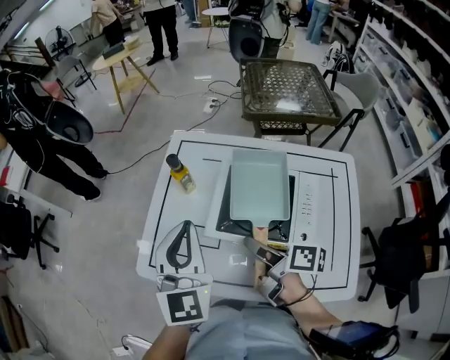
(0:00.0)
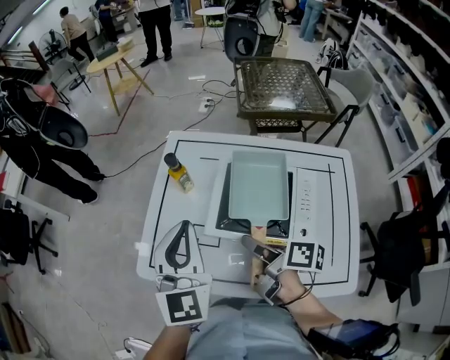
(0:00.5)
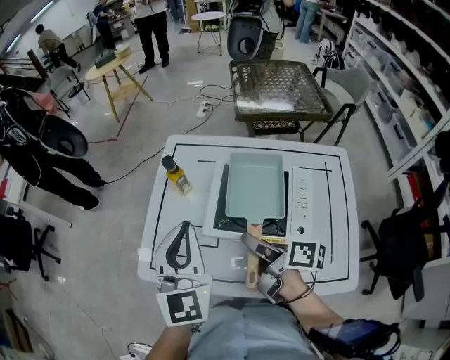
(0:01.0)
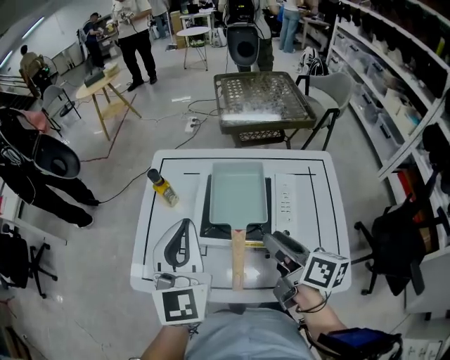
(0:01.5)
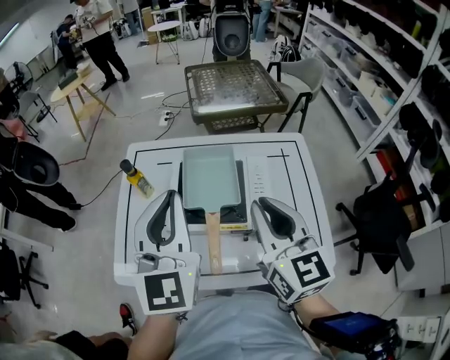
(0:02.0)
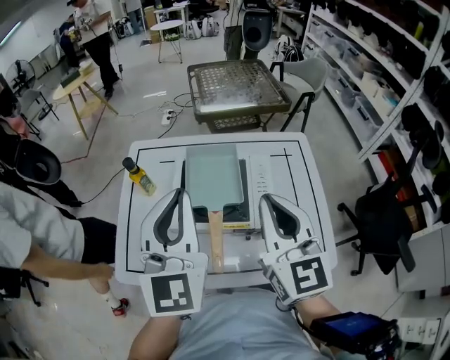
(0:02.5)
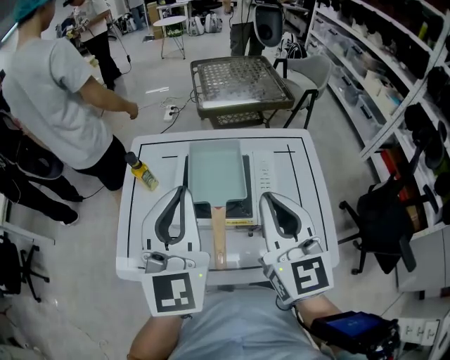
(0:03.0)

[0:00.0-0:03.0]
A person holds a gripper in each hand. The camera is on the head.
0:00.0 to 0:01.5: The right gripper goes some 15 cm to the right, upward and backward, and rotates some 30 degrees. Meanwhile the left gripper moves about 5 cm.
0:01.5 to 0:03.0: The right gripper heads upward, covering some 10 cm, twists some 50 degrees counterclockwise, seen from behind, and closes its fingers, while the left gripper goes approximately 5 cm to the right.

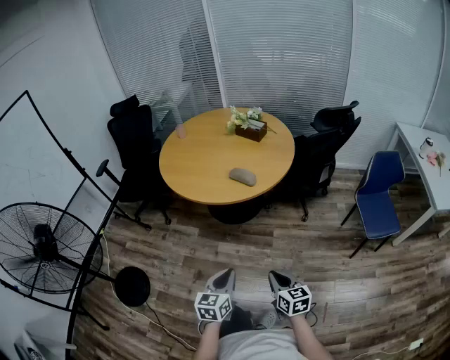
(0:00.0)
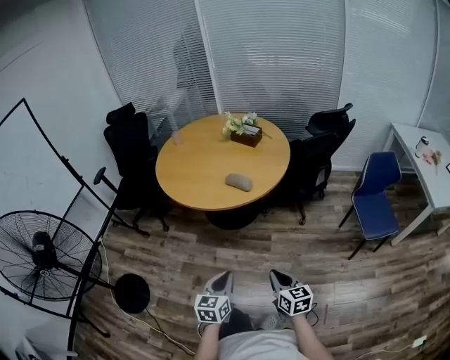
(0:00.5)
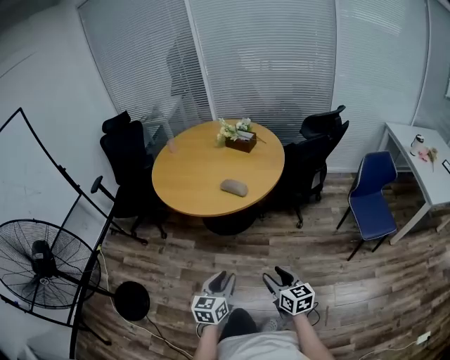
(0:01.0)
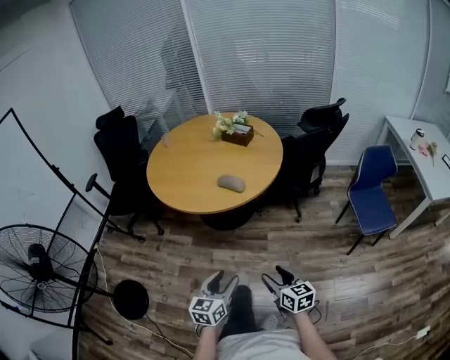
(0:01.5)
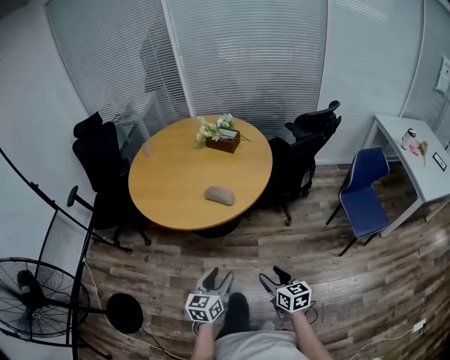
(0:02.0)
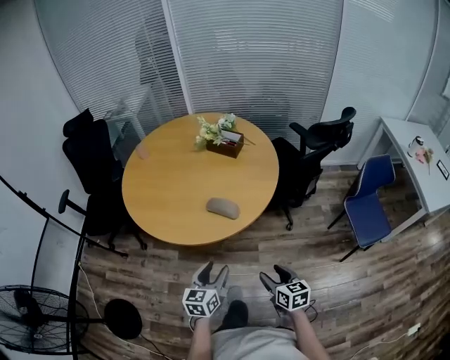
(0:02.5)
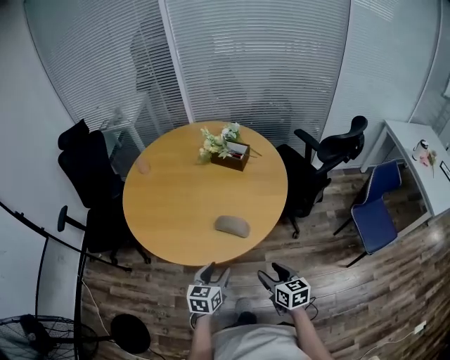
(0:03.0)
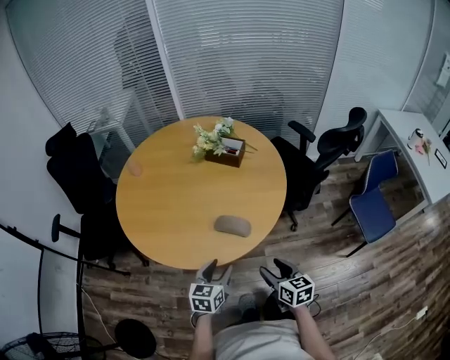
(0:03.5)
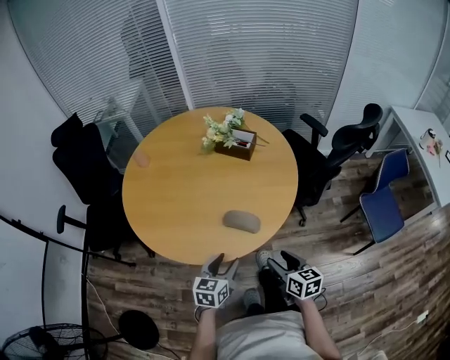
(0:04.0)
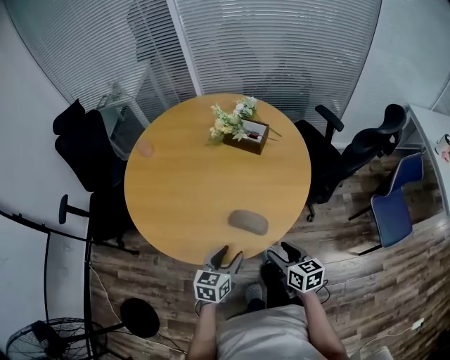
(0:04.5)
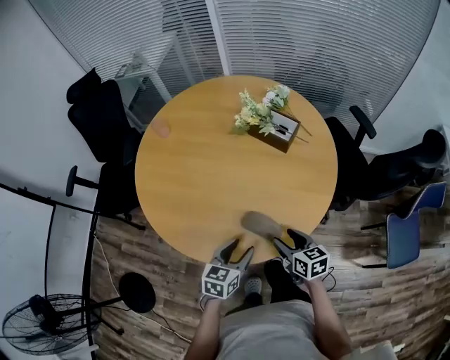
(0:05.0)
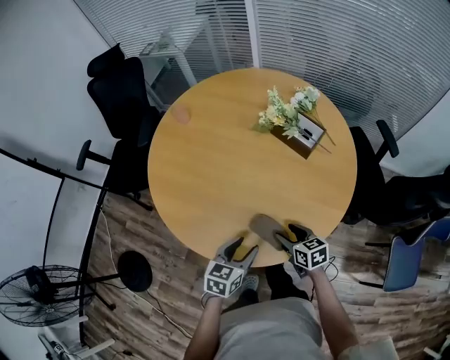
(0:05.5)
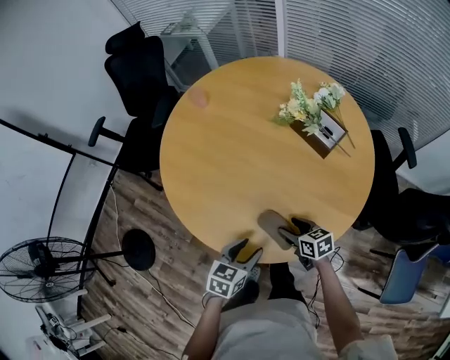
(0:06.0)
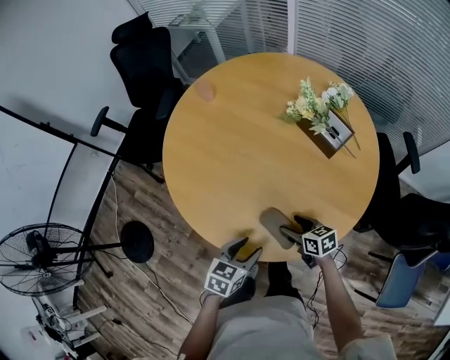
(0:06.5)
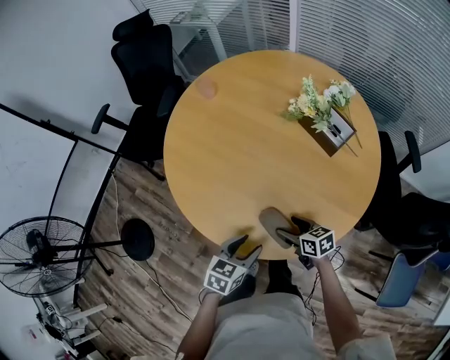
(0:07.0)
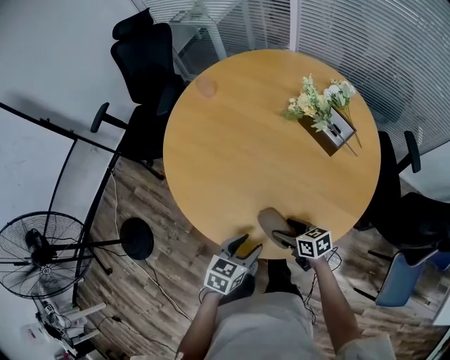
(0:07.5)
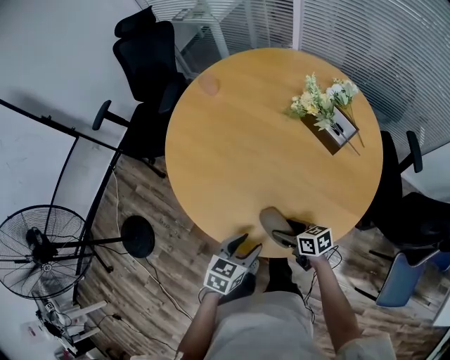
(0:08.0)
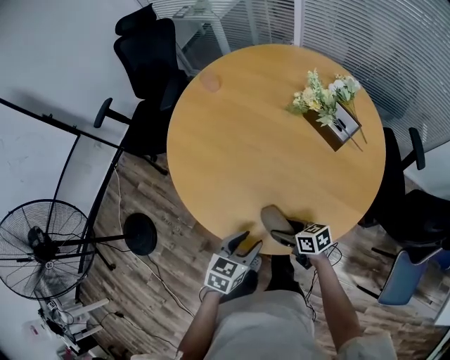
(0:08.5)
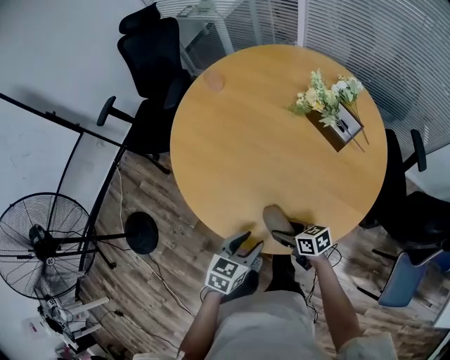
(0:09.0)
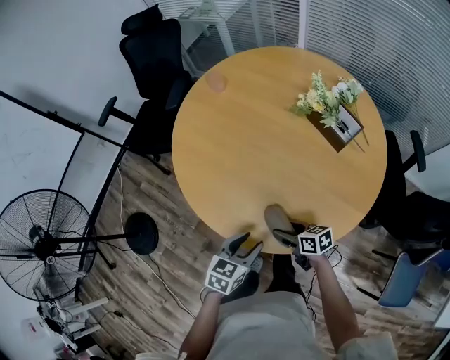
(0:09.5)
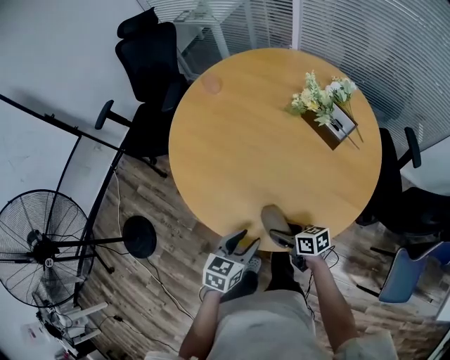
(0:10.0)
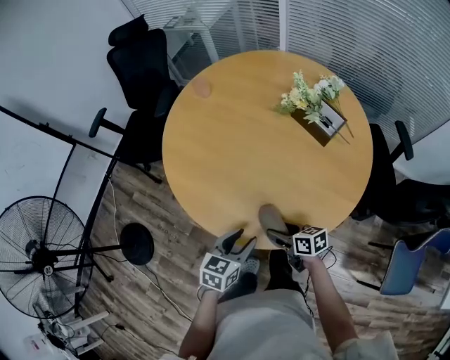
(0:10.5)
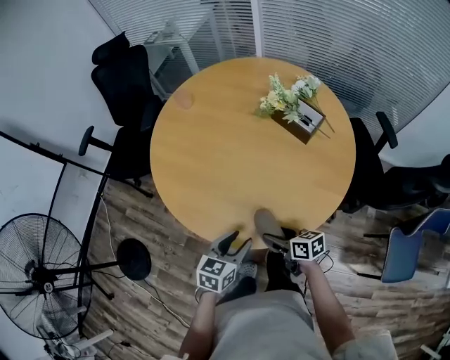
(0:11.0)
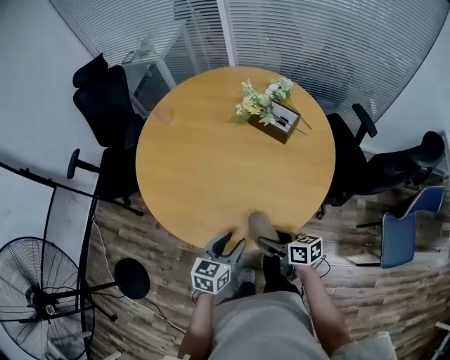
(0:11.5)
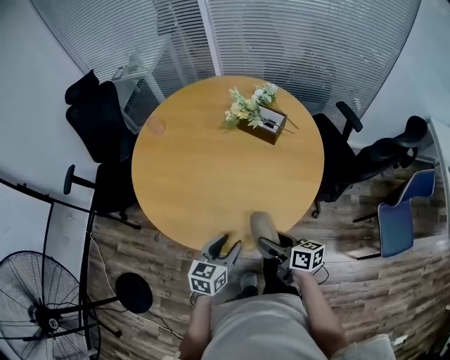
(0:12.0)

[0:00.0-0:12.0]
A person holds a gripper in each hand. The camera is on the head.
0:00.0 to 0:02.0: Both grippers move forward, roughly 15 cm. The left gripper opens up; the right gripper opens its fingers.
0:02.0 to 0:04.0: The grippers both shift forward by some 25 cm.
0:04.0 to 0:06.0: The left gripper changes place by some 10 cm. Meanwhile the right gripper ends up roughly 25 cm from where it was, and turns by about 40 degrees.
0:06.0 to 0:08.0: The right gripper shifts by about 5 cm.
0:08.0 to 0:10.0: There are only small adjustments of the grippers.
0:10.0 to 0:12.0: The right gripper is displaced upward and backward by some 10 cm, and changes its angle by some 30 degrees.

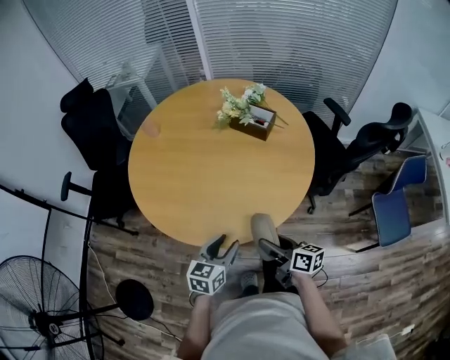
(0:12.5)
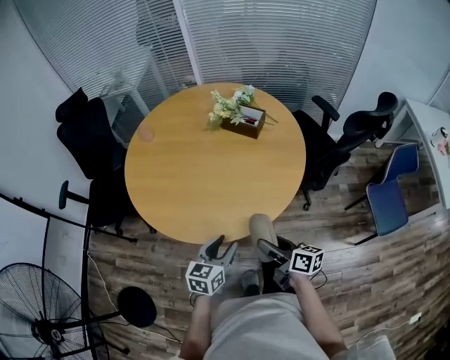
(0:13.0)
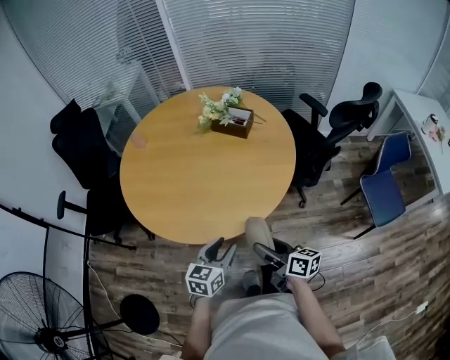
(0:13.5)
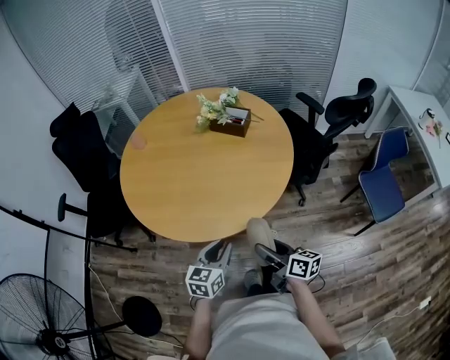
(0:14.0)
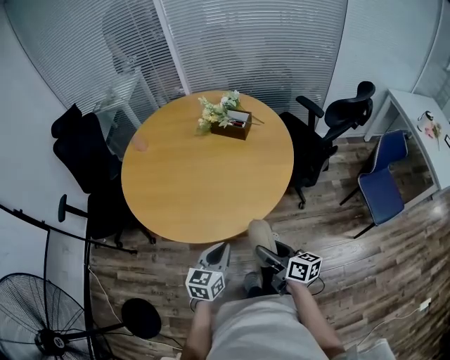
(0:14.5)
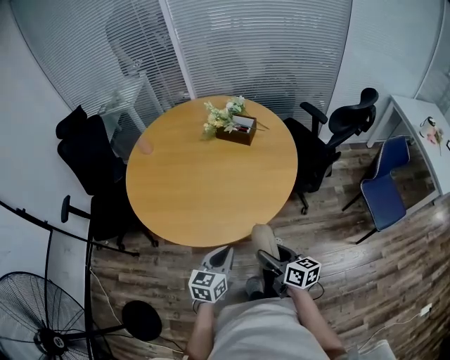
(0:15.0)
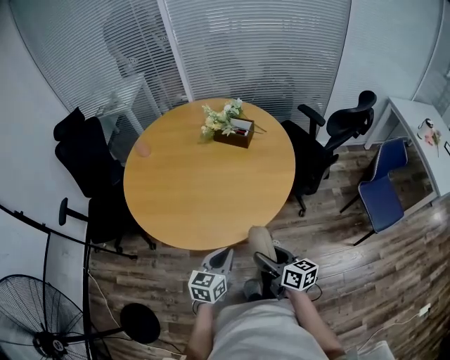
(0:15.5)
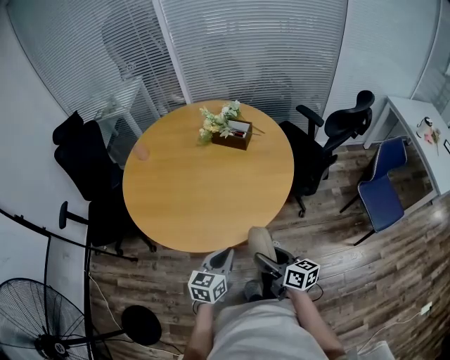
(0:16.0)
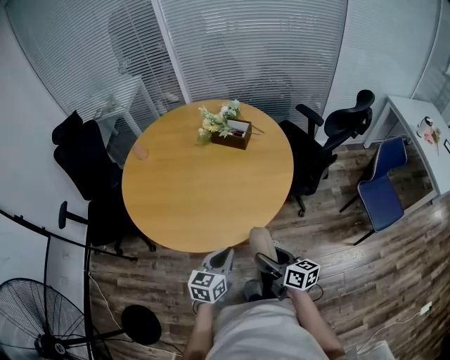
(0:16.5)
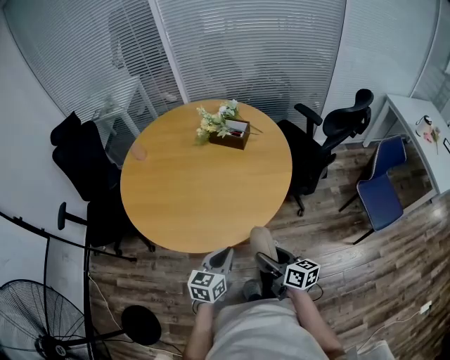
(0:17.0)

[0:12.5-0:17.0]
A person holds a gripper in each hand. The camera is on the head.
0:12.5 to 0:14.5: Both grippers travel together backward, approximately 10 cm. The left gripper closes its fingers.
0:14.5 to 0:17.0: The grippers move only a little.

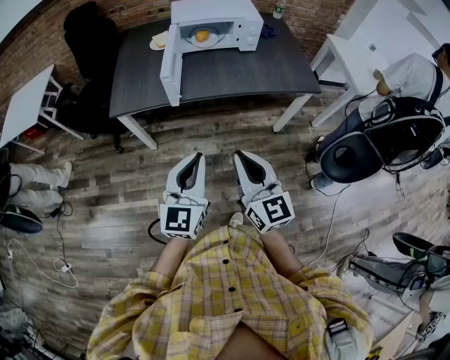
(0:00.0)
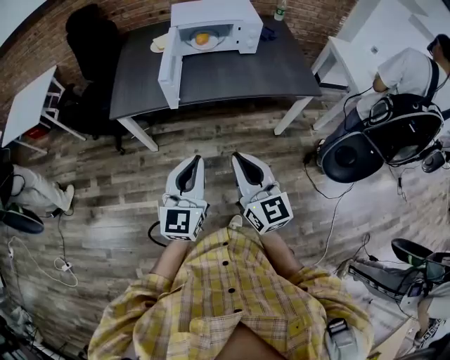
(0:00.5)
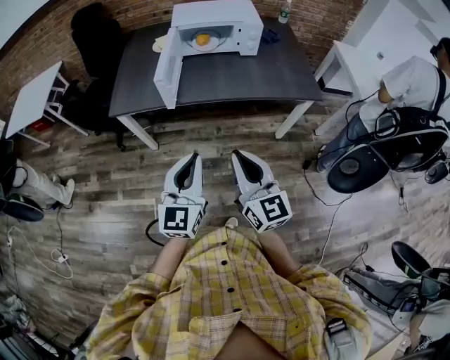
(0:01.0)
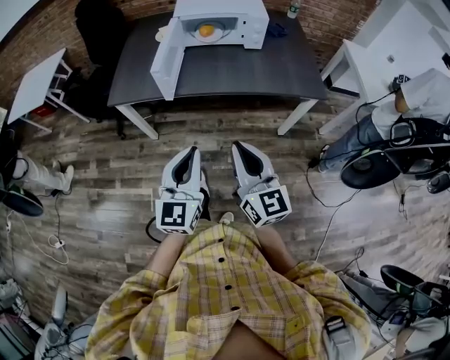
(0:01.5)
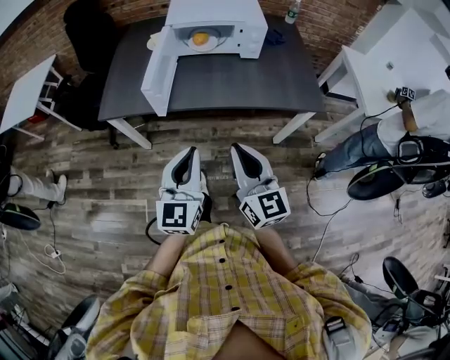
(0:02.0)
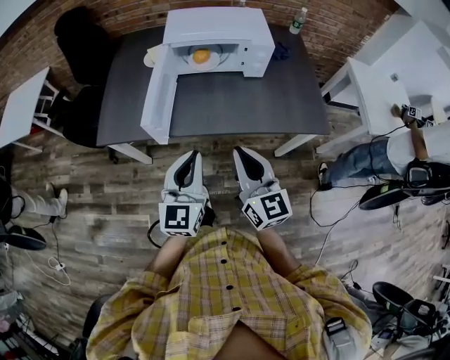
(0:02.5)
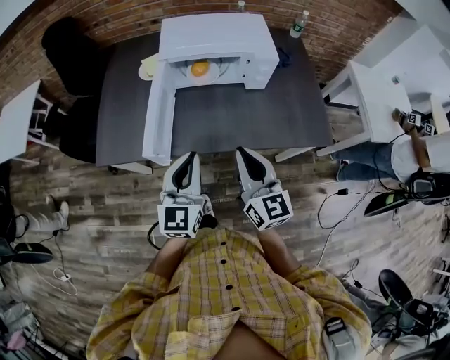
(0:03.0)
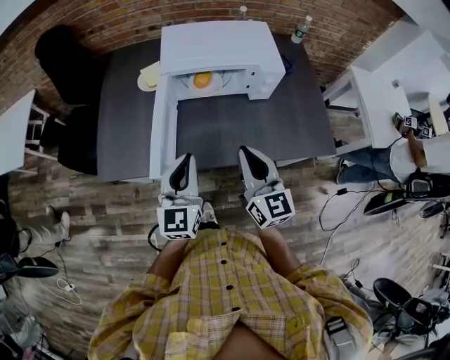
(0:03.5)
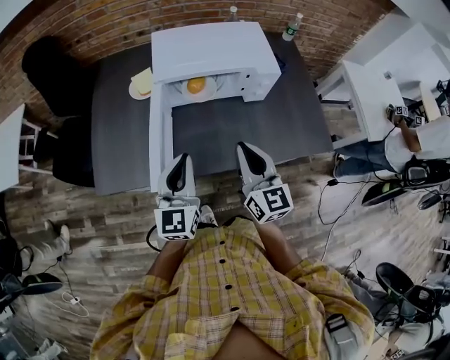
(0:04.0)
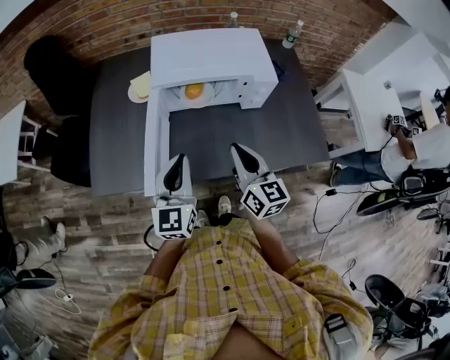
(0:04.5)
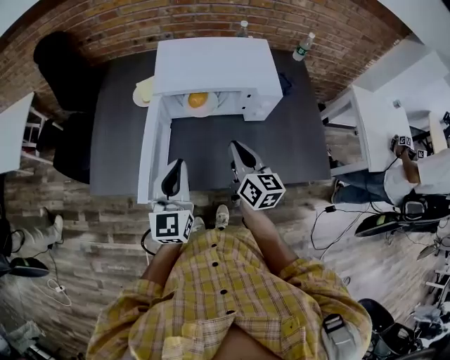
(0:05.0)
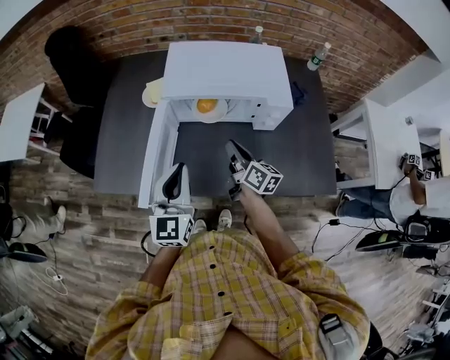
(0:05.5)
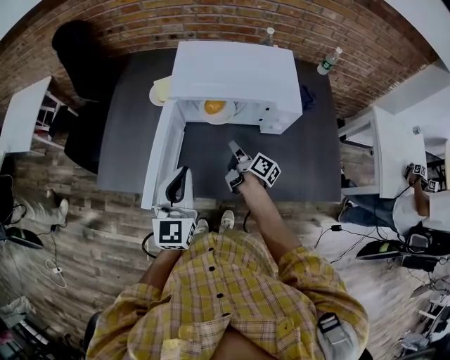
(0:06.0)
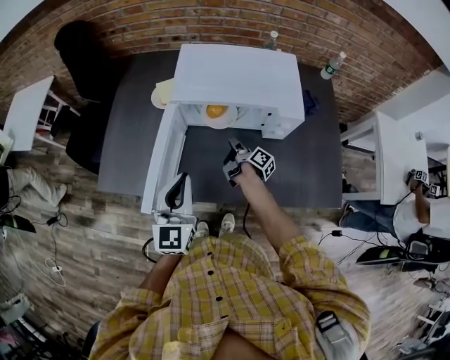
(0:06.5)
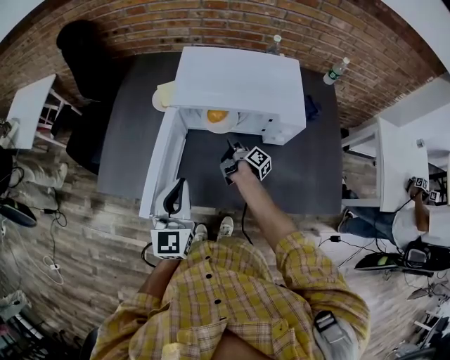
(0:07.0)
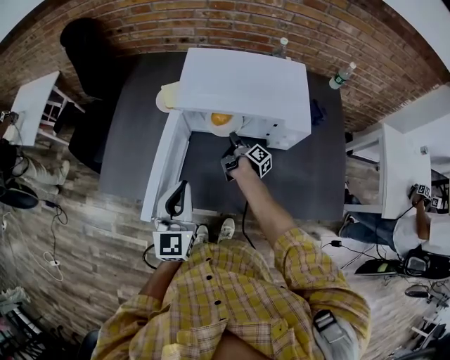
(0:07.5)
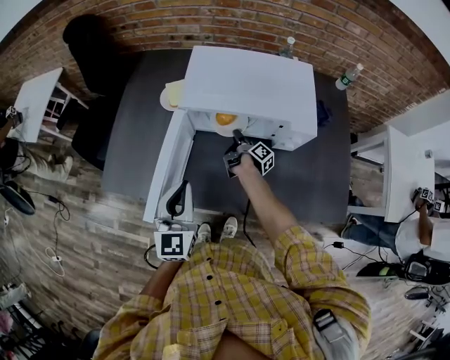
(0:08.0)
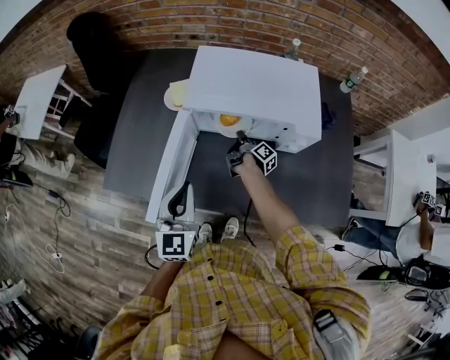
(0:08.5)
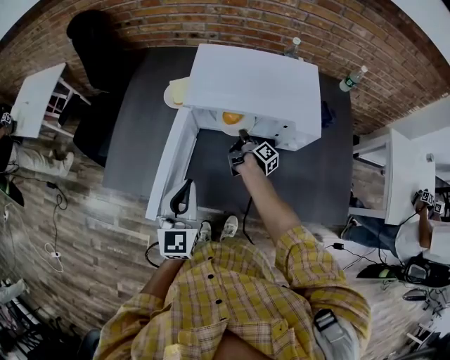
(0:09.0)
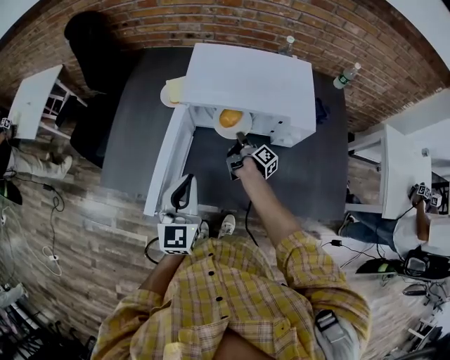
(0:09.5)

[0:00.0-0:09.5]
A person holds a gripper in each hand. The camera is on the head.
0:00.0 to 0:02.0: Both grippers travel together forward and to the right, about 15 cm.
0:02.0 to 0:04.0: The two grippers go approximately 35 cm forward.
0:04.0 to 0:05.5: The right gripper travels forward and downward by some 20 cm, and swivels some 40 degrees.
0:05.5 to 0:07.5: The right gripper moves downward and forward, approximately 20 cm, rotates around the line of its fingers by approximately 50 degrees, clockwise from behind, and opens.
0:07.5 to 0:09.5: The right gripper closes up.
